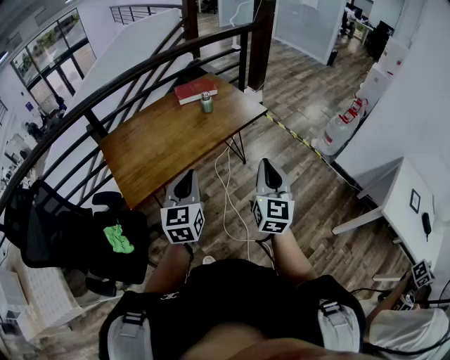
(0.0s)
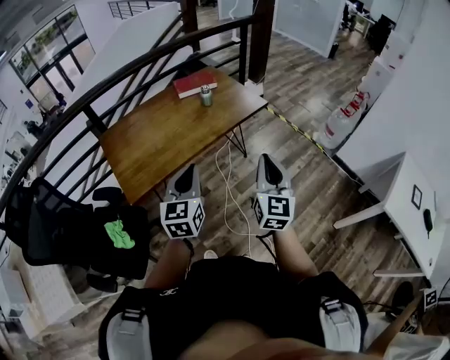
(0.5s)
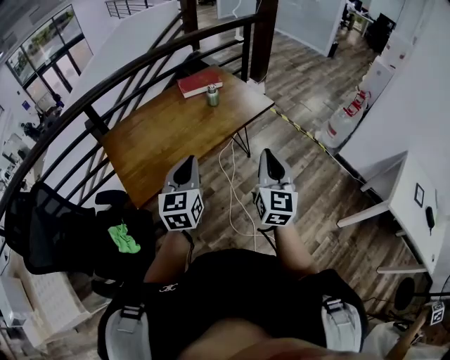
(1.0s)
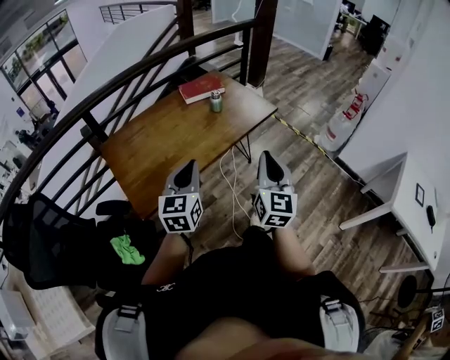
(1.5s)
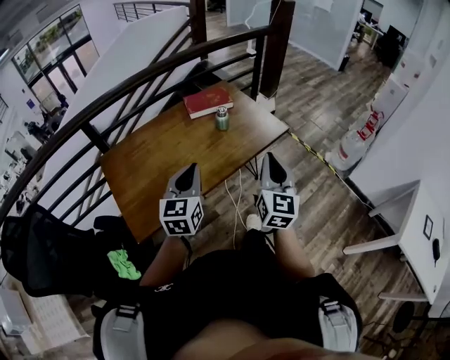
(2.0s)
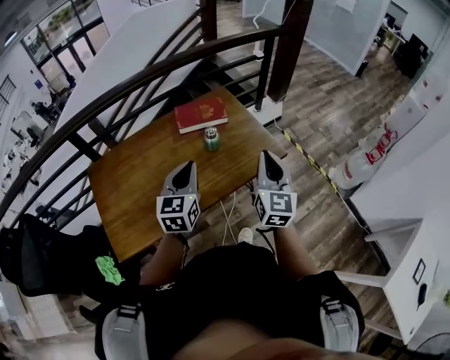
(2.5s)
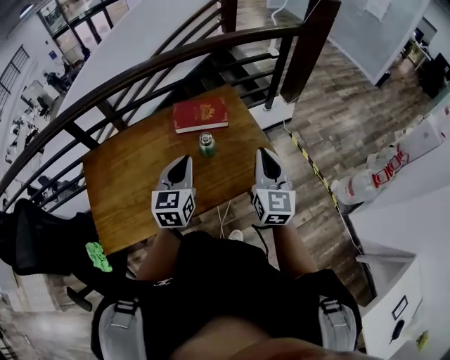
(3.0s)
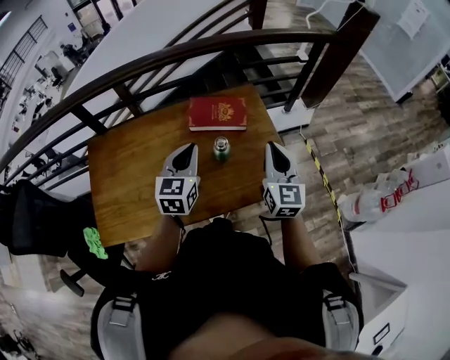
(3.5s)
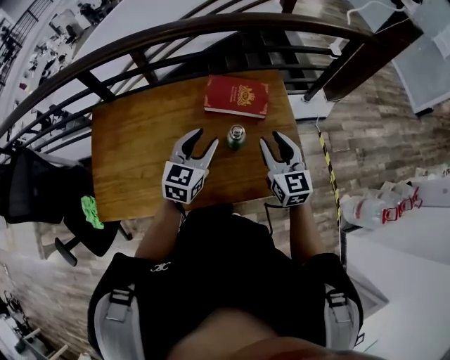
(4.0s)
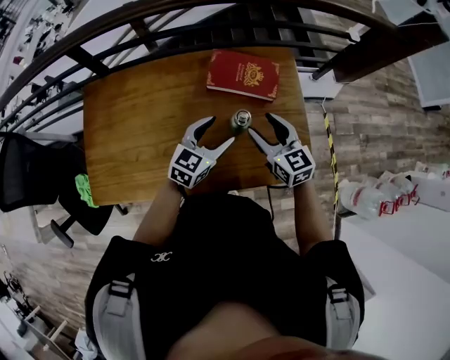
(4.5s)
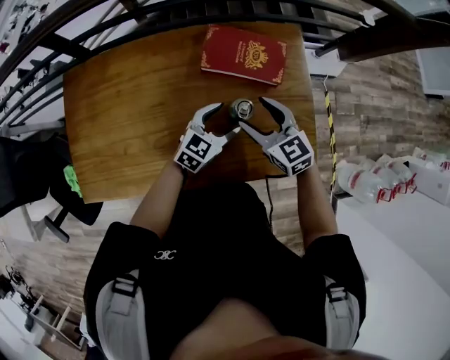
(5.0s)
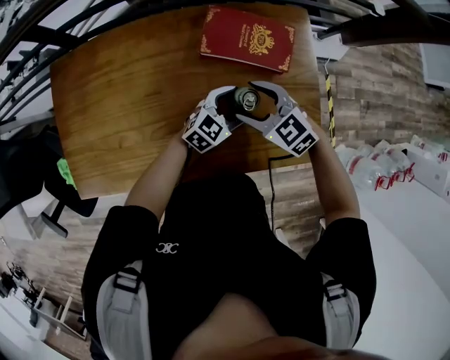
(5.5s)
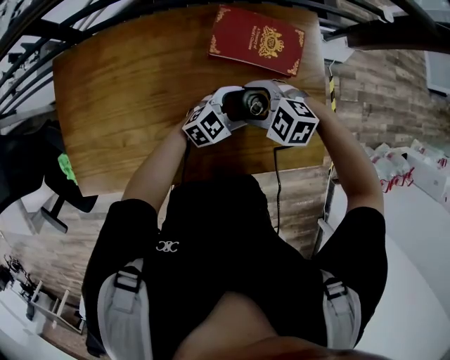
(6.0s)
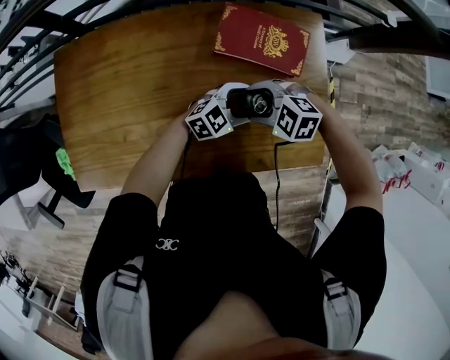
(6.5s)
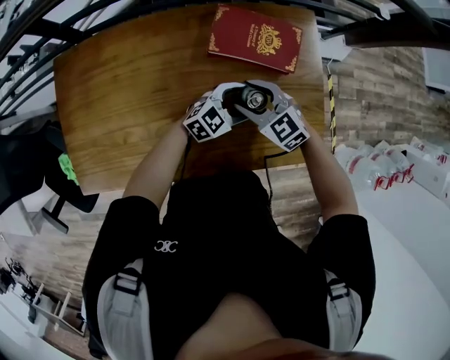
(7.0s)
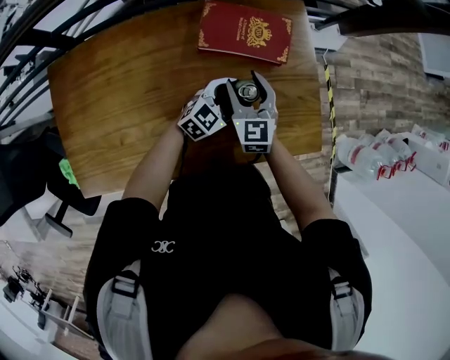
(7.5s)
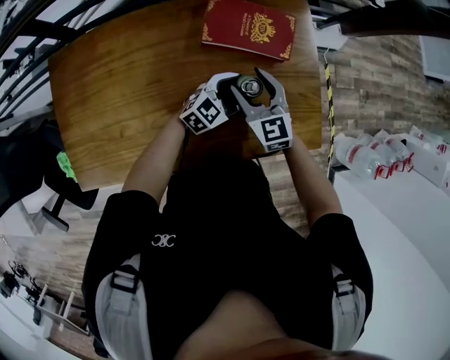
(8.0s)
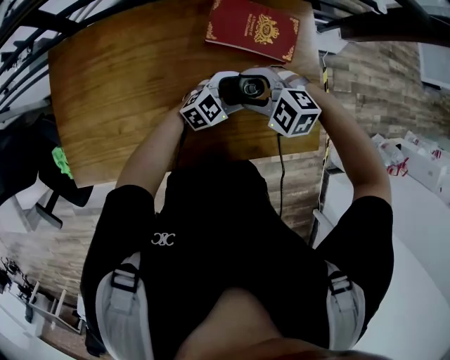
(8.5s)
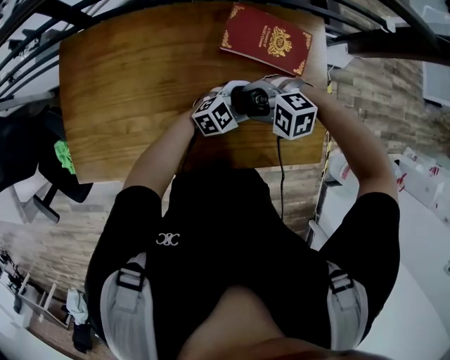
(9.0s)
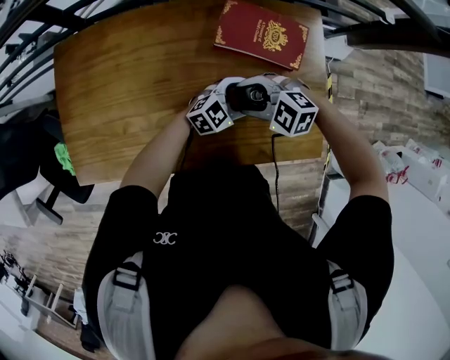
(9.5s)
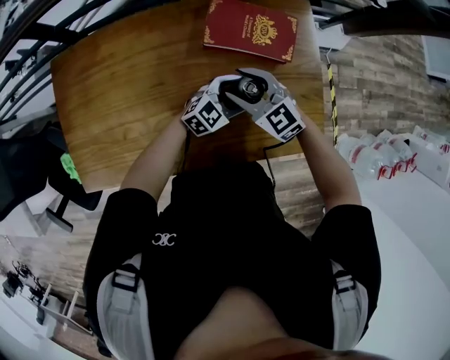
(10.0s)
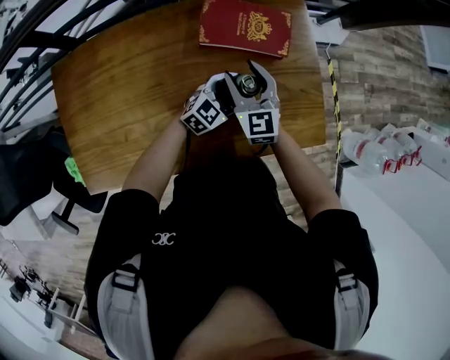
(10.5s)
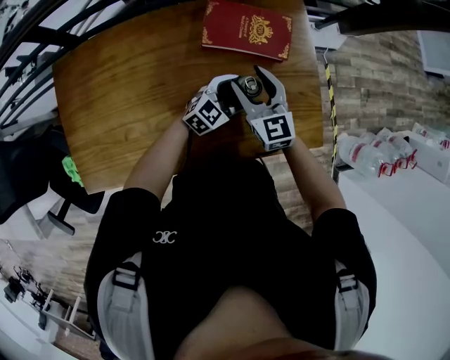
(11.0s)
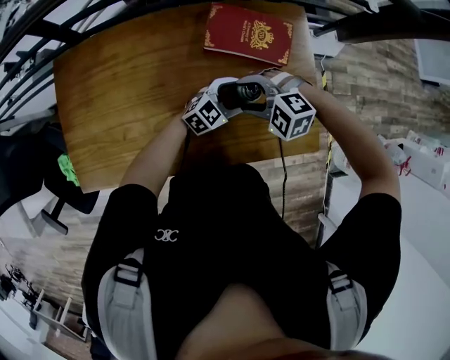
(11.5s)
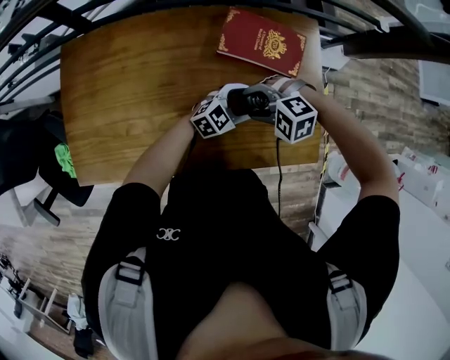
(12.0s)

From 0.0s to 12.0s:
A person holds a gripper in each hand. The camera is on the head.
From 0.0s to 2.0s: The two grippers go about 20 cm forward and to the left.
From 2.0s to 4.0s: The right gripper shifts by roughly 40 cm, rotates some 50 degrees, and opens. Meanwhile the left gripper ends up roughly 35 cm from where it was, and opens its fingers.
From 4.0s to 6.0s: The grippers both shift downward by roughly 20 cm. The left gripper swivels some 40 degrees, and opens up; the right gripper points its fingers roughly 50 degrees further downward, and opens its fingers.
From 6.0s to 8.0s: The right gripper changes place by some 5 cm, and tips its fingers upward by about 30 degrees.
From 8.0s to 10.0s: The right gripper rotates about 20 degrees.
From 10.0s to 12.0s: The right gripper ends up about 5 cm from where it was, and tilts its fingers about 40 degrees downward.

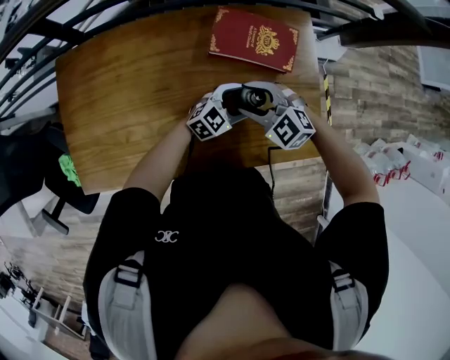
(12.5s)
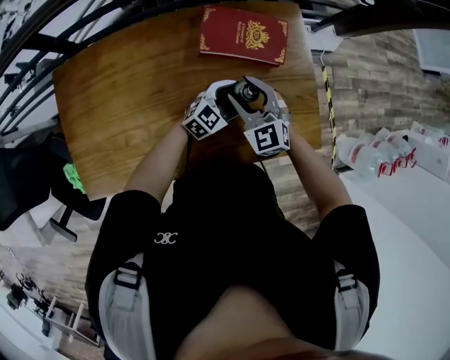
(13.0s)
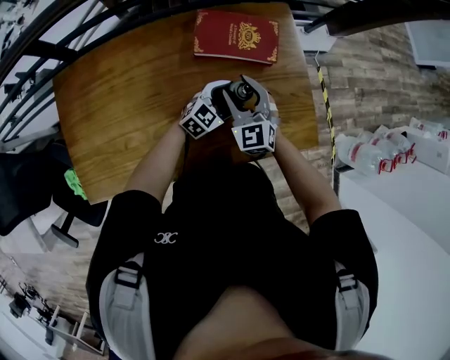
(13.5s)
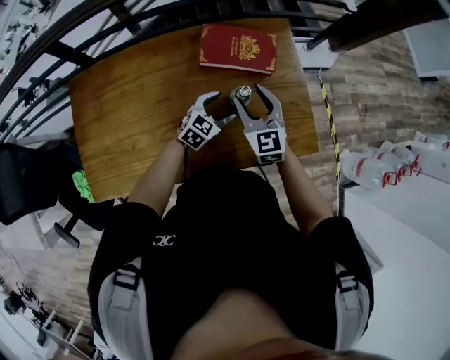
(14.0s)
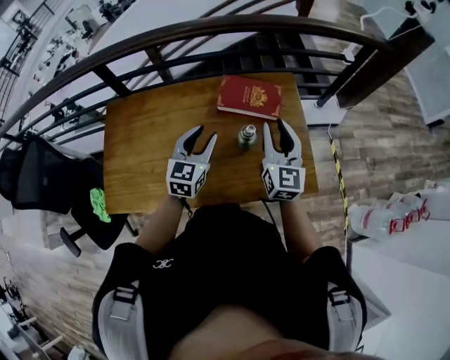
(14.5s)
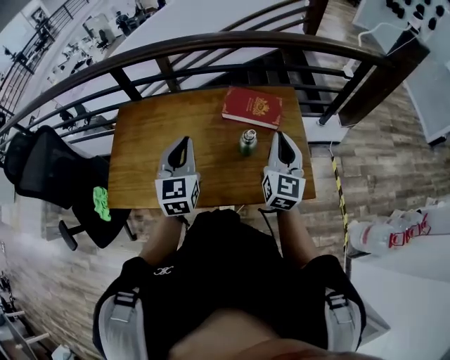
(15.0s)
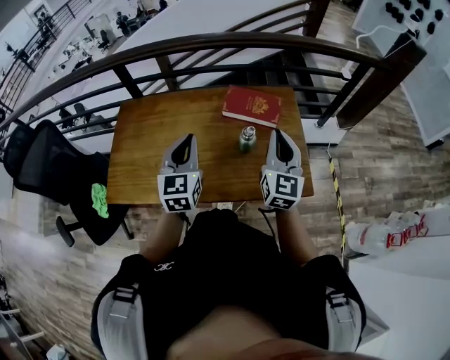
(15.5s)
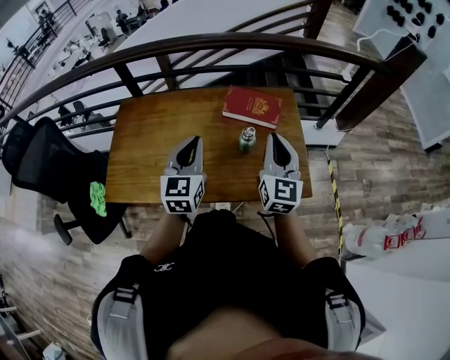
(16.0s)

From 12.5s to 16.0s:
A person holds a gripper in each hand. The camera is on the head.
From 12.5s to 14.5s: Both grippers travel together upward, approximately 20 cm. The right gripper tips its fingers upward by about 40 degrees; the left gripper rotates some 50 degrees, and closes up.
From 14.5s to 16.0s: The left gripper is displaced backward and upward by roughly 15 cm, and closes up. The right gripper goes about 10 cm backward, and closes up.

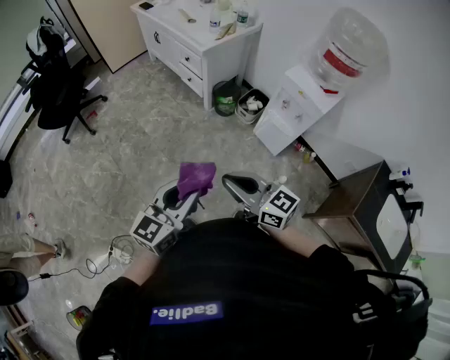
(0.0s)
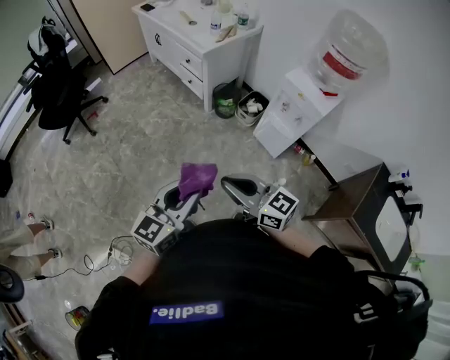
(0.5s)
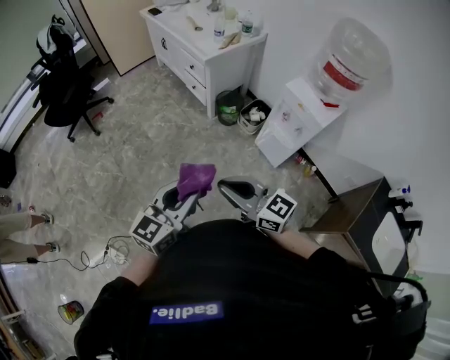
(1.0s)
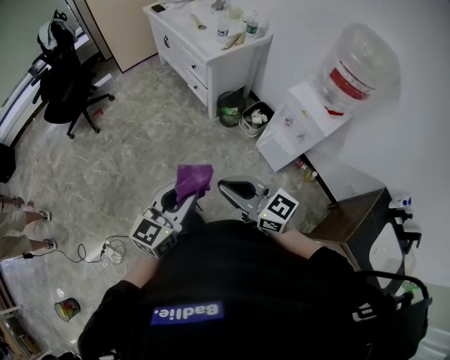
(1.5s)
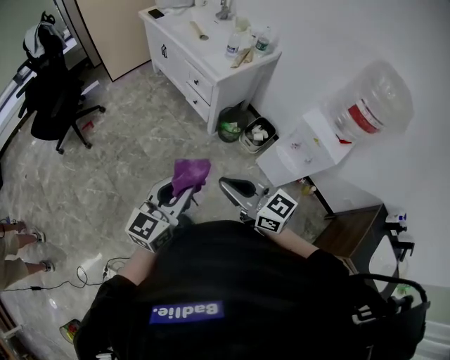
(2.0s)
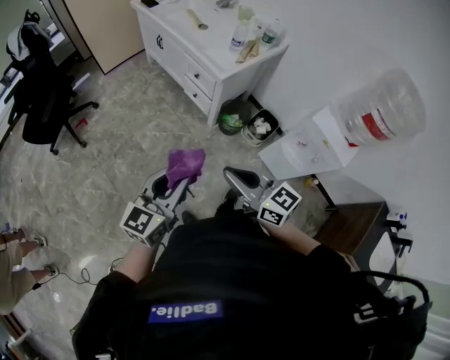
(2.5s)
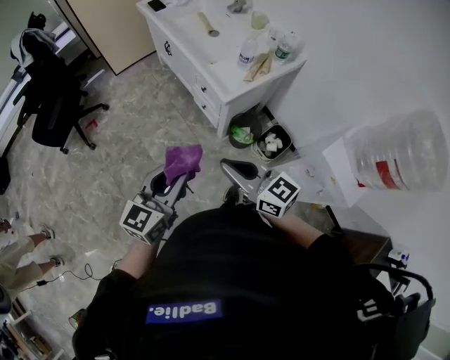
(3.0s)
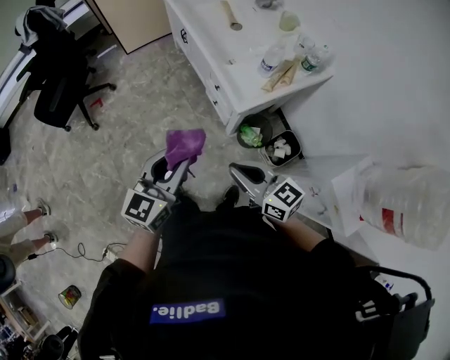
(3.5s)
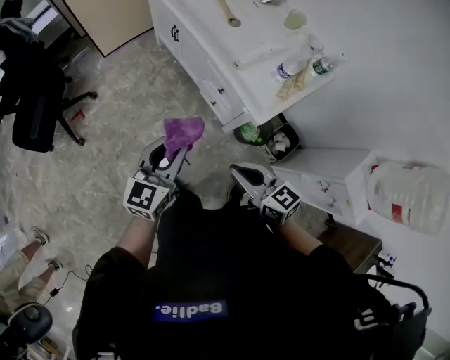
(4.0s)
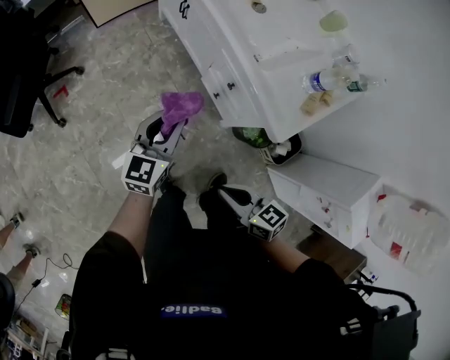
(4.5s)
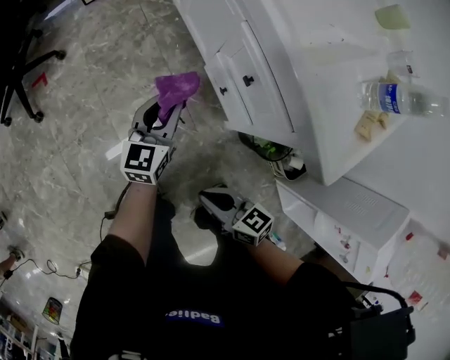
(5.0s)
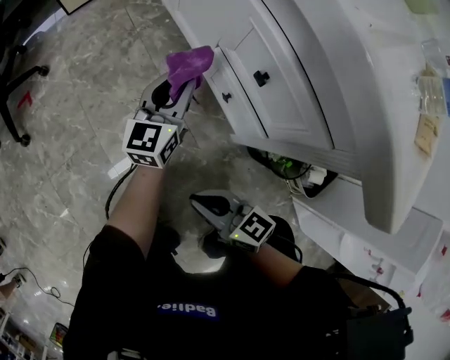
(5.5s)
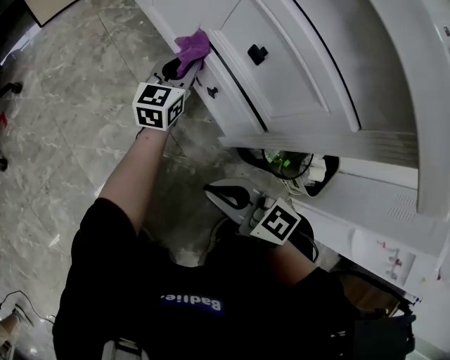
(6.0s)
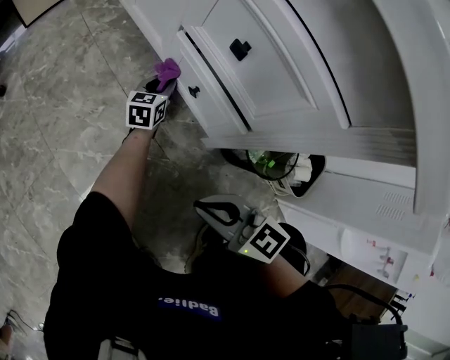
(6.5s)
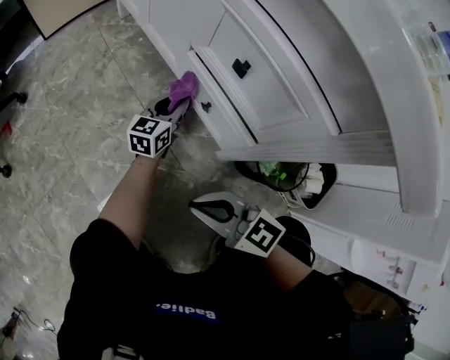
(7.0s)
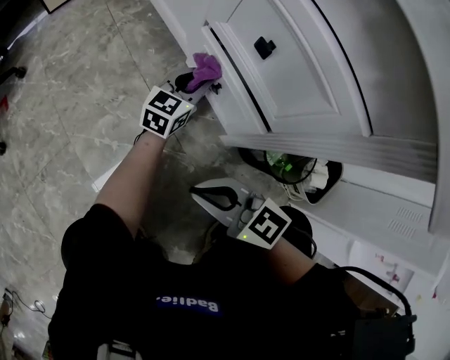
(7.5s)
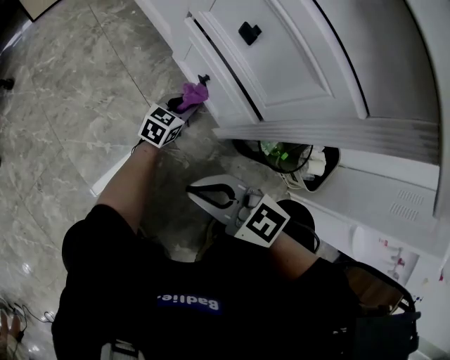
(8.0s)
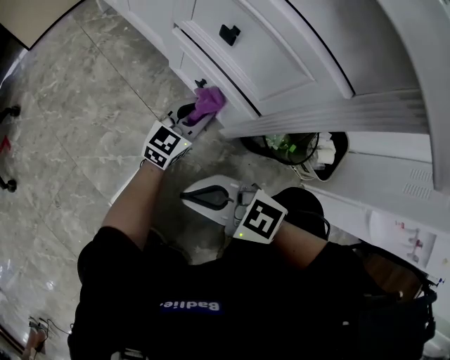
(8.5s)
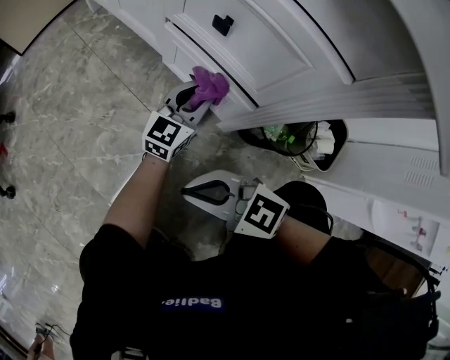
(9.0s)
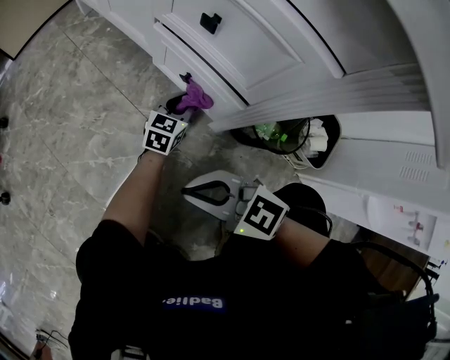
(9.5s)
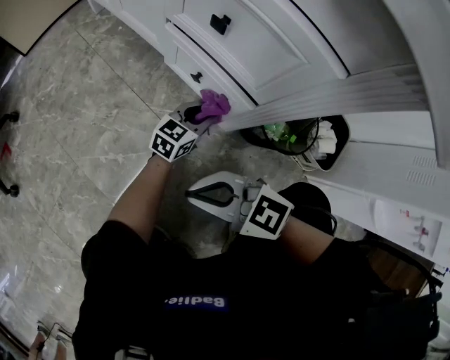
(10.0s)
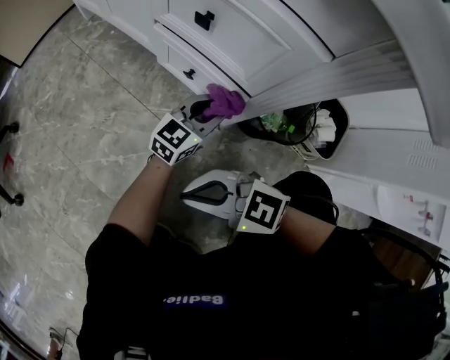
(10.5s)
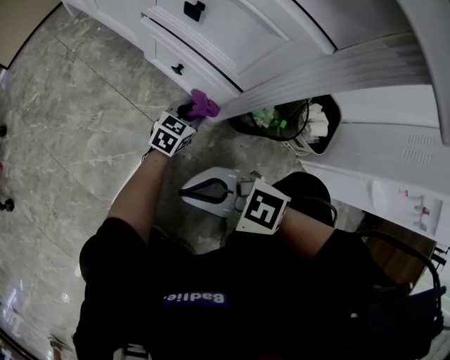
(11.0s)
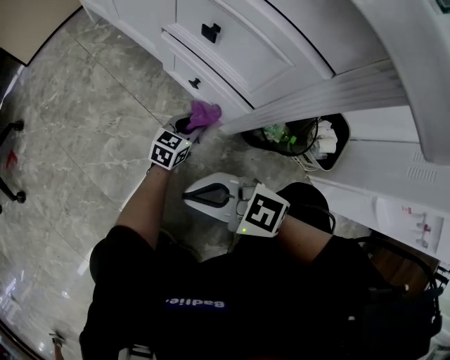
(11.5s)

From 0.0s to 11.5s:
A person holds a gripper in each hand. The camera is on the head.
From 0.0s to 2.0s: The two grippers go about 25 cm forward.
From 2.0s to 4.0s: Both grippers are carried forward, about 50 cm.
From 4.0s to 6.0s: The right gripper is displaced downward by about 50 cm, while the left gripper goes approximately 70 cm downward and forward.
From 6.0s to 7.5s: The left gripper moves downward and backward, approximately 10 cm.
From 7.5s to 9.5s: The left gripper swings up and down, some 15 cm each way, with 2 reversals.
From 9.5s to 11.5s: The left gripper moves approximately 10 cm upward and comes back.
